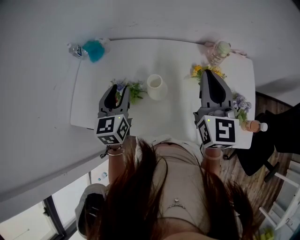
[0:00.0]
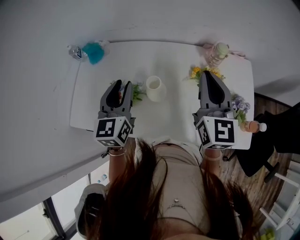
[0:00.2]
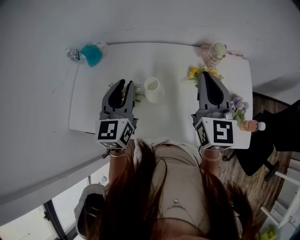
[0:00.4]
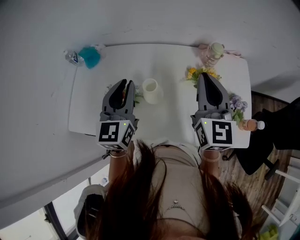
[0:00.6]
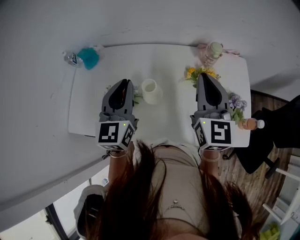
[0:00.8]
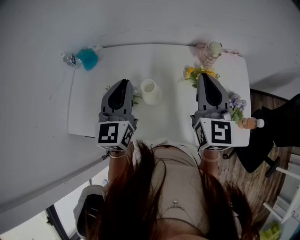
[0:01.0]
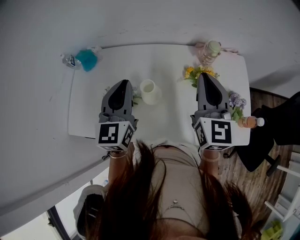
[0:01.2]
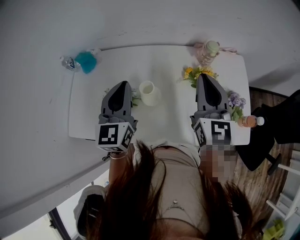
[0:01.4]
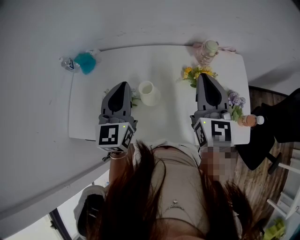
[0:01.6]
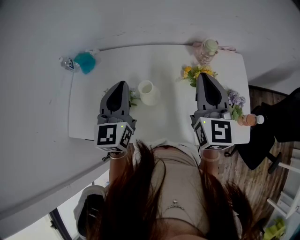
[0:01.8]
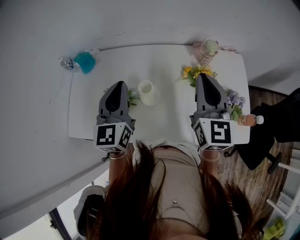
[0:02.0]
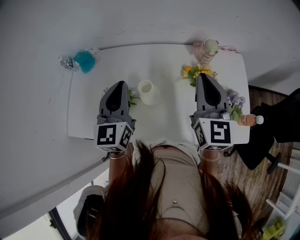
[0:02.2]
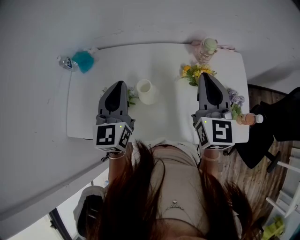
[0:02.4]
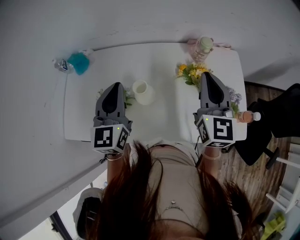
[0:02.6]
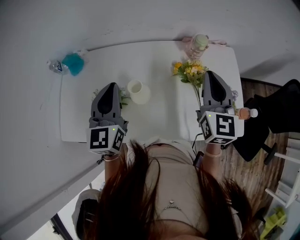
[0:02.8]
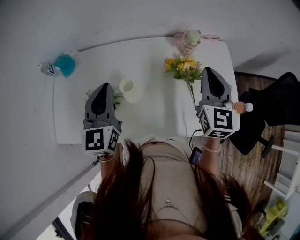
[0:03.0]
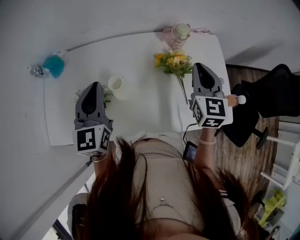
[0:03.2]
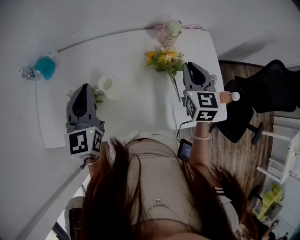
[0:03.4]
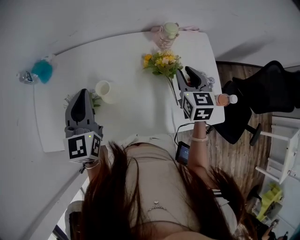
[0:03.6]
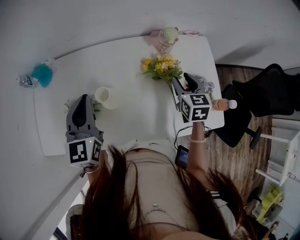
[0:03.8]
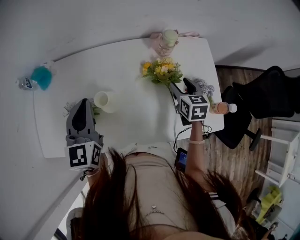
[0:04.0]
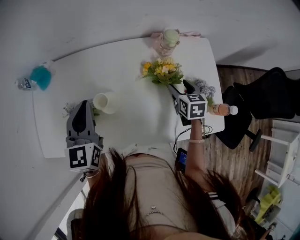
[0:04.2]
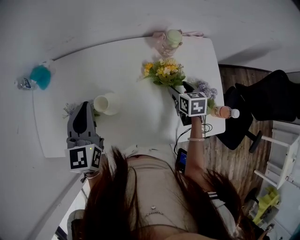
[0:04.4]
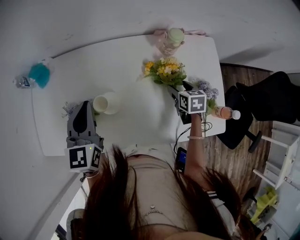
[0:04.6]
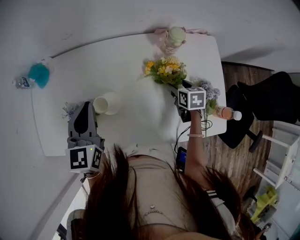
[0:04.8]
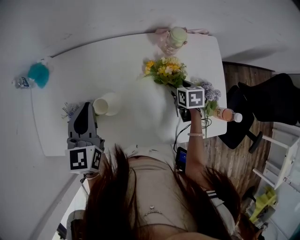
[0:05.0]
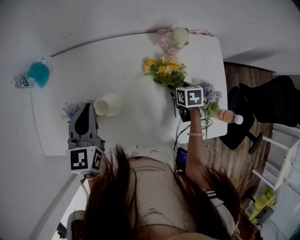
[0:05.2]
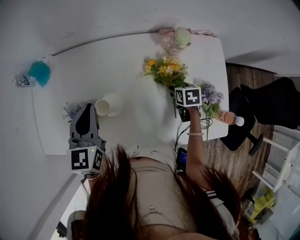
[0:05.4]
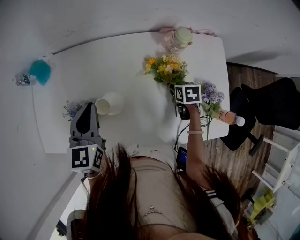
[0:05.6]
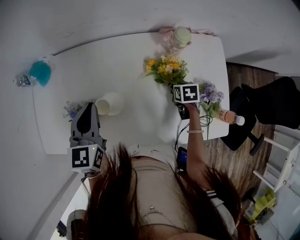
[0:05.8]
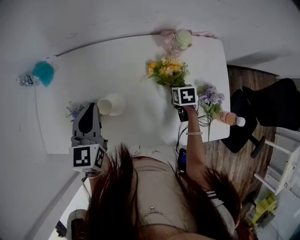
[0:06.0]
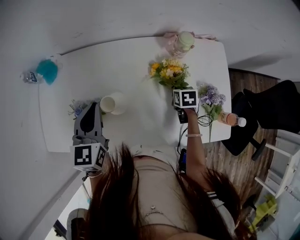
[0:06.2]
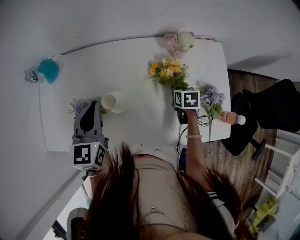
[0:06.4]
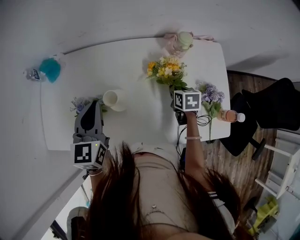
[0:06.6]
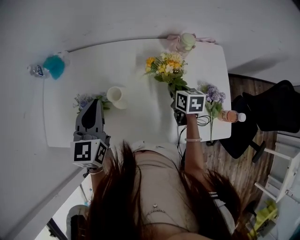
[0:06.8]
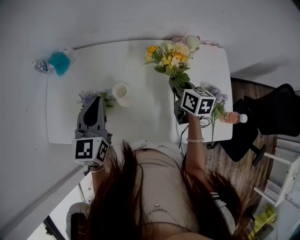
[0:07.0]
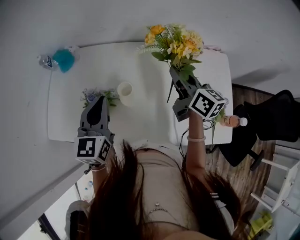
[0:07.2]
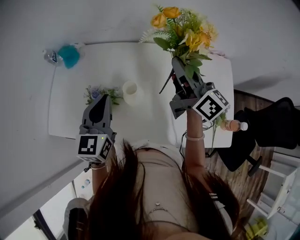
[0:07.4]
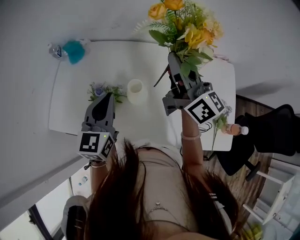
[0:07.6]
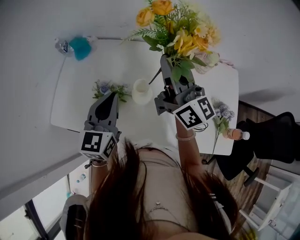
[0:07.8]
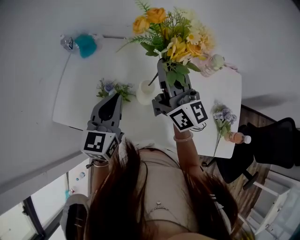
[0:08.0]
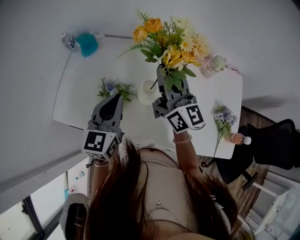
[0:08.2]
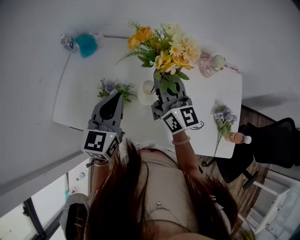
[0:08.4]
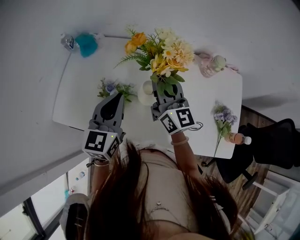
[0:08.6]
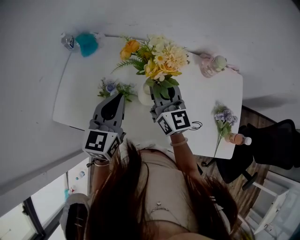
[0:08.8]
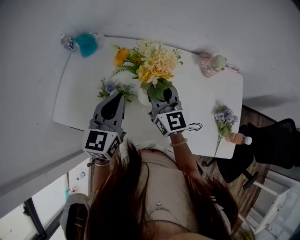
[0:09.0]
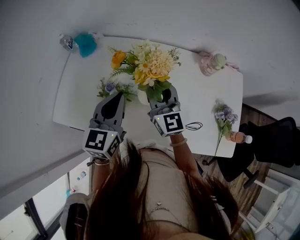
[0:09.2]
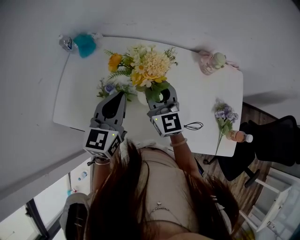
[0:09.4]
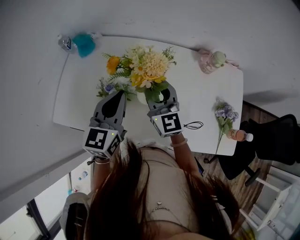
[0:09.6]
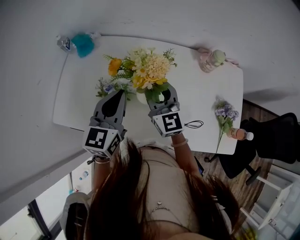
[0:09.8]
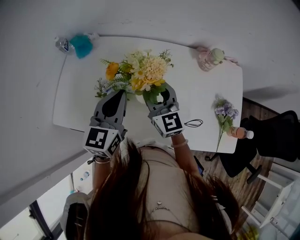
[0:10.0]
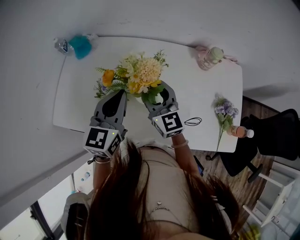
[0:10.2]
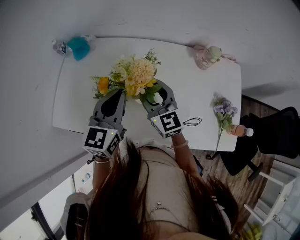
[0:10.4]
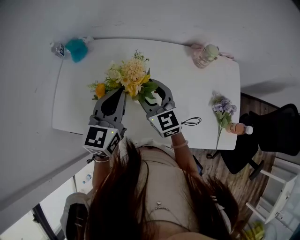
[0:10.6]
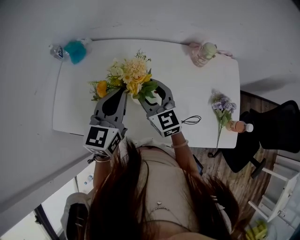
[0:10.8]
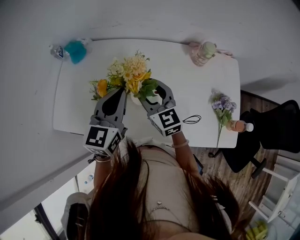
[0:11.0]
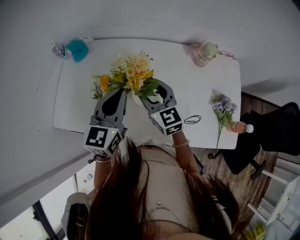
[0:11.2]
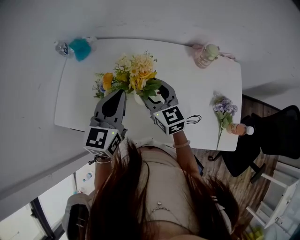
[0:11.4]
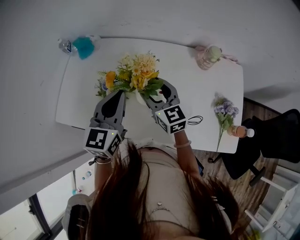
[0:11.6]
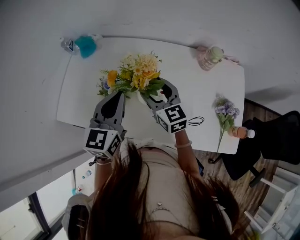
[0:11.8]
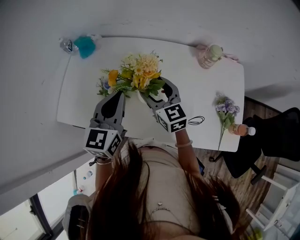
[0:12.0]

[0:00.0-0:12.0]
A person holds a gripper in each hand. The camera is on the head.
0:00.0 to 0:01.6: The left gripper goes about 10 cm upward and to the right, and closes.
0:01.6 to 0:03.0: The right gripper shifts roughly 10 cm to the right.
0:03.0 to 0:04.4: The right gripper heads downward, covering some 25 cm, tilts its fingers approximately 40 degrees downward, and opens. The left gripper changes place by about 5 cm.
0:04.4 to 0:06.0: The right gripper travels downward by about 10 cm, and closes up.
0:06.0 to 0:07.6: The left gripper goes roughly 10 cm backward and to the left, while the right gripper shifts about 40 cm upward and to the left, and tips its fingers upward by about 80 degrees.
0:07.6 to 0:09.0: The right gripper shifts some 15 cm downward and to the left, and swivels some 30 degrees.
0:09.0 to 0:10.4: The right gripper opens up.
0:10.4 to 0:12.0: The grippers make only small movements.

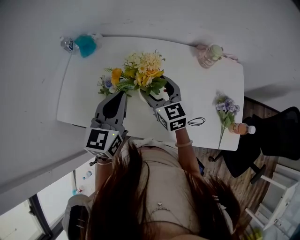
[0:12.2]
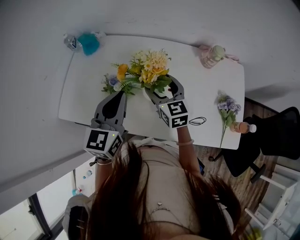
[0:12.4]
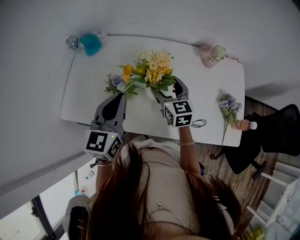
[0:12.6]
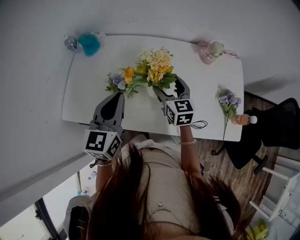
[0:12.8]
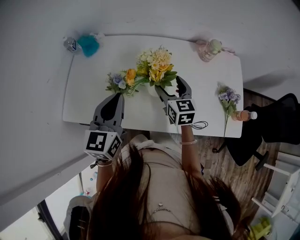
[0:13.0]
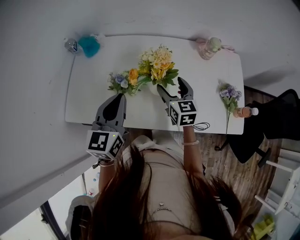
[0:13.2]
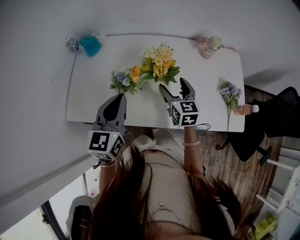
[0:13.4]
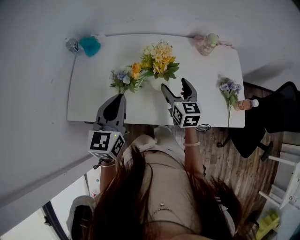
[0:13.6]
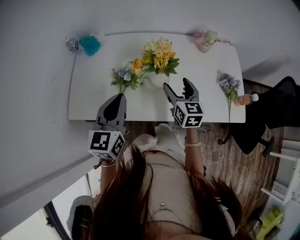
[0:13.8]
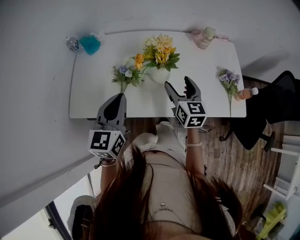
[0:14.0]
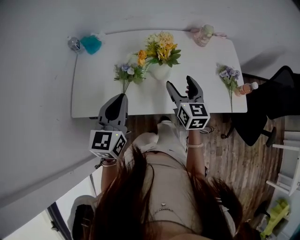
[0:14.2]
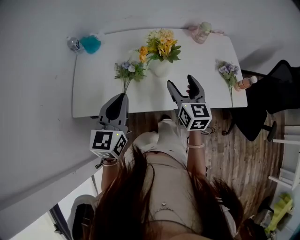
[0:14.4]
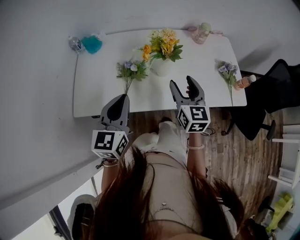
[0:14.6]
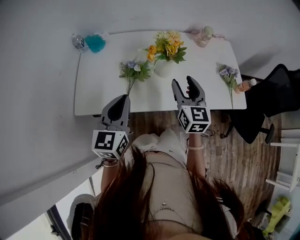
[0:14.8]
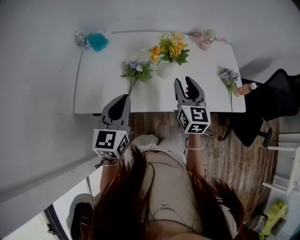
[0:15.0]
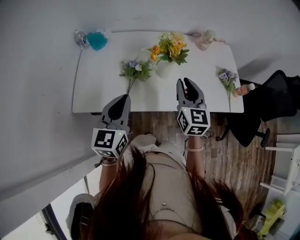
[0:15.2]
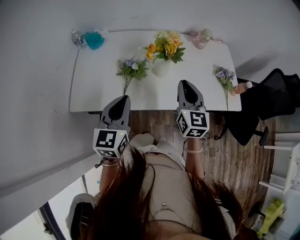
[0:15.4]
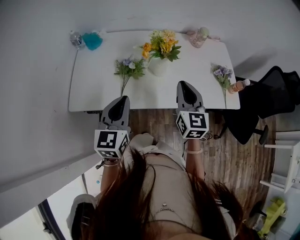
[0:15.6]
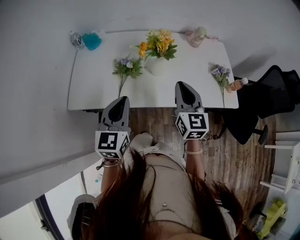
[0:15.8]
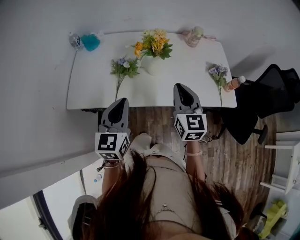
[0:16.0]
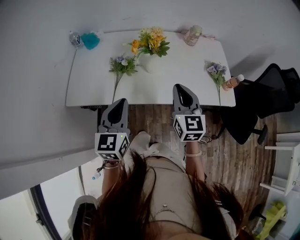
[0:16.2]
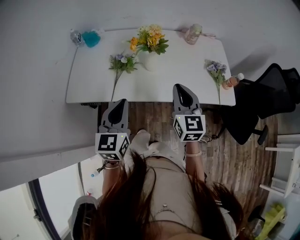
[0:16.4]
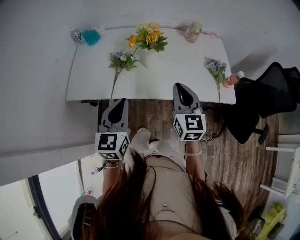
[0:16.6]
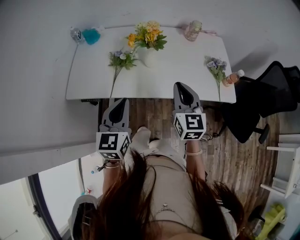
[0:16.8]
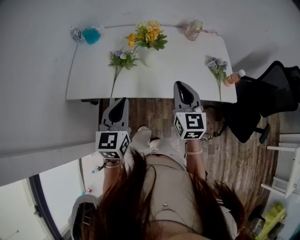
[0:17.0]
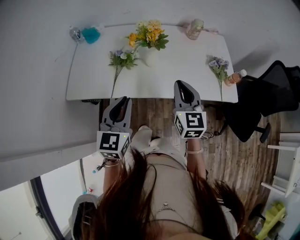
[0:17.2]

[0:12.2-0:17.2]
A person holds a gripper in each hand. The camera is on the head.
0:12.2 to 0:13.8: The right gripper shifts some 10 cm backward, and turns by approximately 30 degrees. Meanwhile the left gripper travels to the left and backward by some 10 cm.
0:13.8 to 0:15.6: The right gripper travels backward and upward by about 15 cm, and closes. Meanwhile the left gripper heads backward, covering approximately 10 cm.
0:15.6 to 0:17.2: Both grippers travel together to the right and backward, roughly 10 cm.

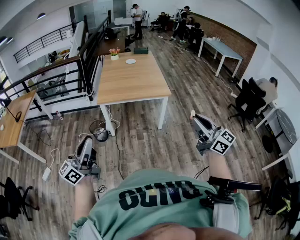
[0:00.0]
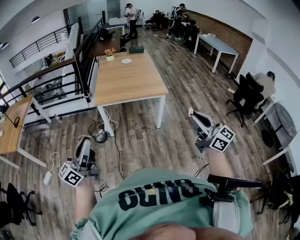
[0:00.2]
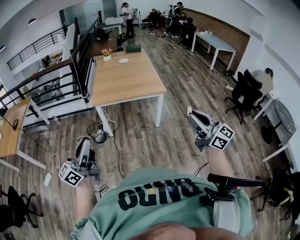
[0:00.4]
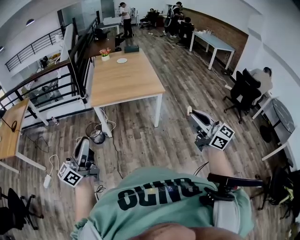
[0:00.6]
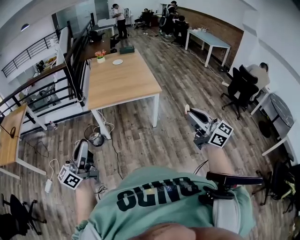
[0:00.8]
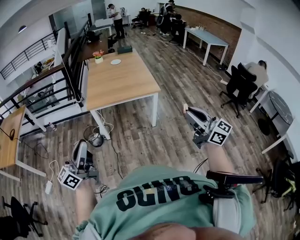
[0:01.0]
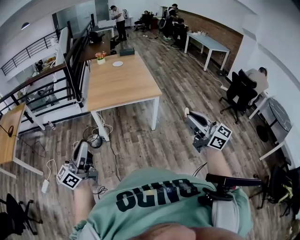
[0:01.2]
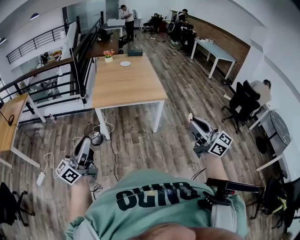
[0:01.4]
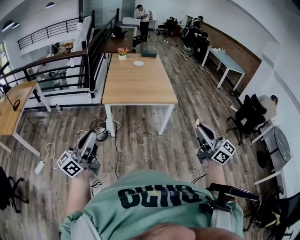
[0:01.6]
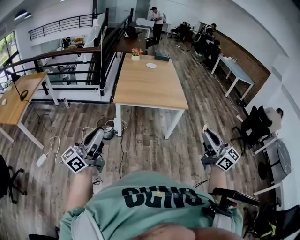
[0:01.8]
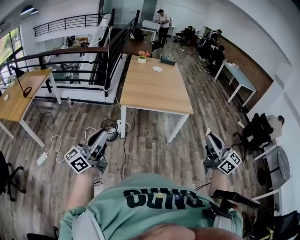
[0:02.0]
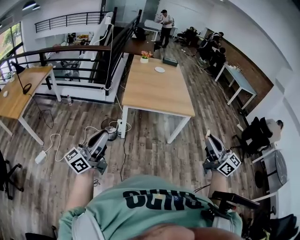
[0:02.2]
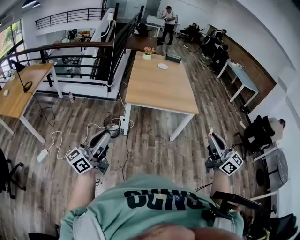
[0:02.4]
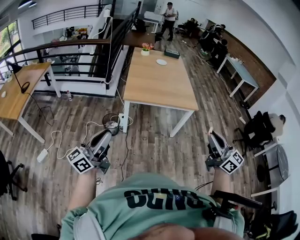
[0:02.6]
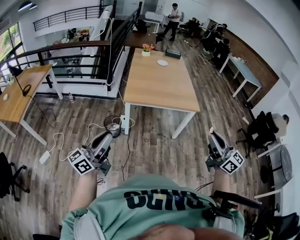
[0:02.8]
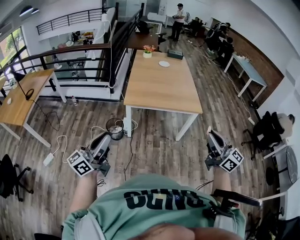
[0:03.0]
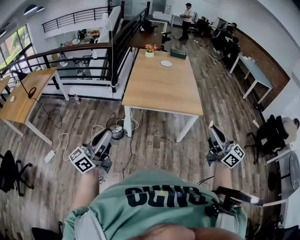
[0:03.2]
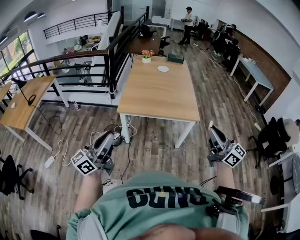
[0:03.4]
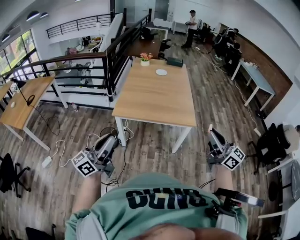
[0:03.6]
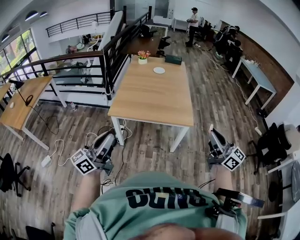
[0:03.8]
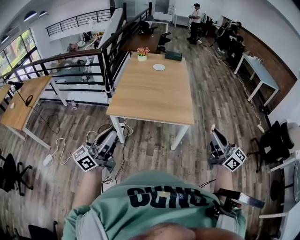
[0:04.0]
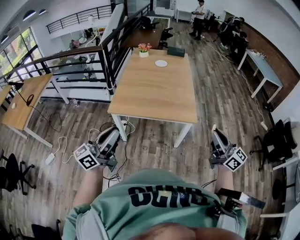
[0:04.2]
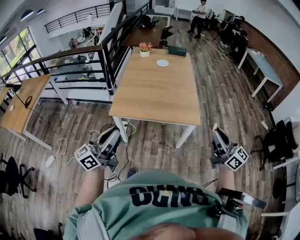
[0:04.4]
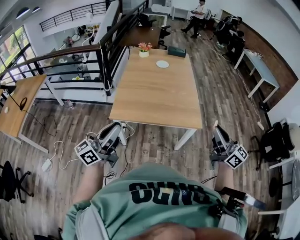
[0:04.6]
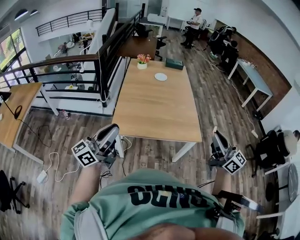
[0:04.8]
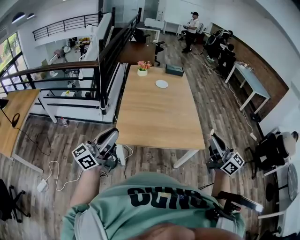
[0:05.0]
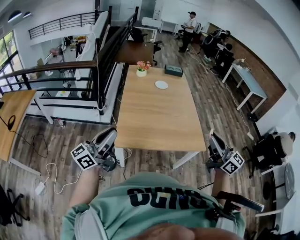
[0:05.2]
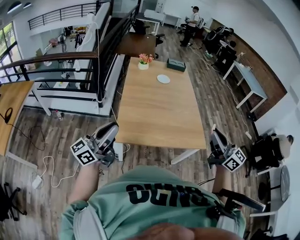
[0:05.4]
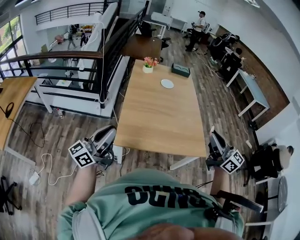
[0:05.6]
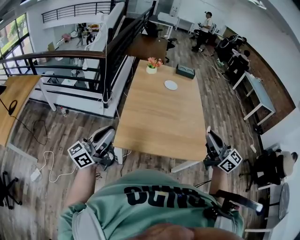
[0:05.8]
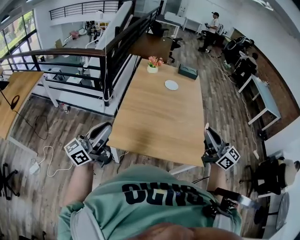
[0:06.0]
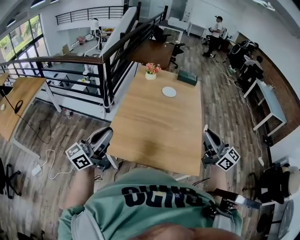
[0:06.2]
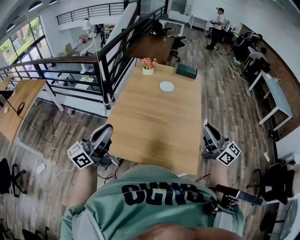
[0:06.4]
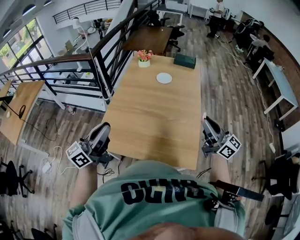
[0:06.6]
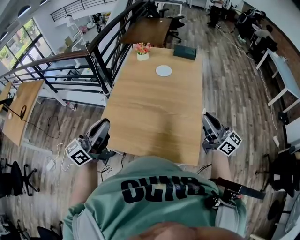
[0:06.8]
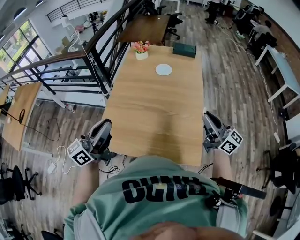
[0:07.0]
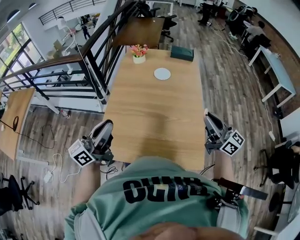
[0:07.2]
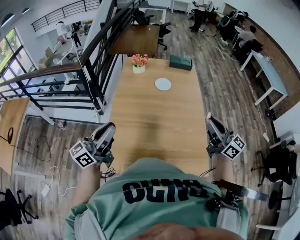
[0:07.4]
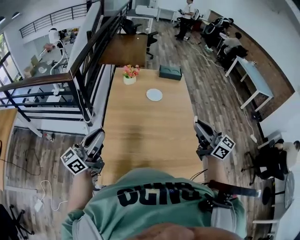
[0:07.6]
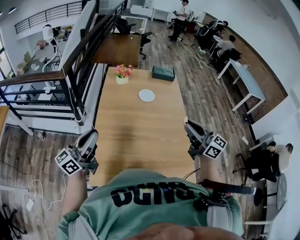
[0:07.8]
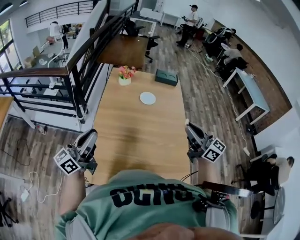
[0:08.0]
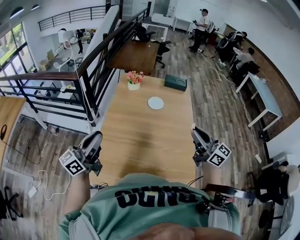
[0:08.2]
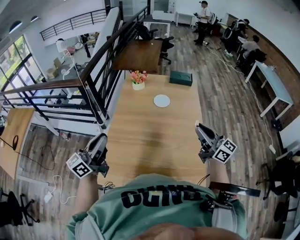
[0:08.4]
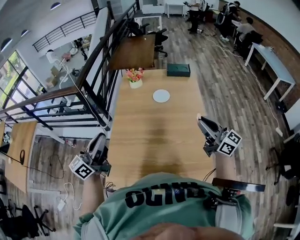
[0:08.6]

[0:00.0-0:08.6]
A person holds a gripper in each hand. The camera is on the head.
0:00.0 to 0:01.4: The grippers make only small movements.
0:01.4 to 0:02.8: Both grippers travel together to the left and forward, about 15 cm.
0:02.8 to 0:04.4: The left gripper shifts about 35 cm to the right and forward. Meanwhile the right gripper shifts approximately 35 cm forward and to the right.
0:04.4 to 0:05.8: The grippers both shift forward and to the left by some 35 cm.
0:05.8 to 0:07.2: Both grippers travel together to the right and forward, some 30 cm.
0:07.2 to 0:08.6: The left gripper moves forward and to the left, approximately 15 cm; the right gripper shifts some 10 cm forward, and travels to the left and back again, some 15 cm each way.
